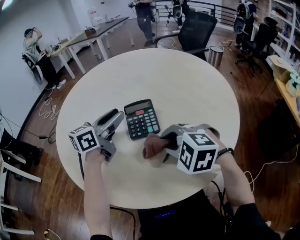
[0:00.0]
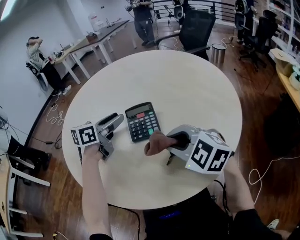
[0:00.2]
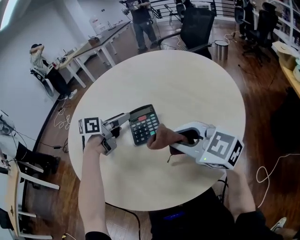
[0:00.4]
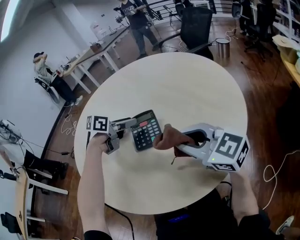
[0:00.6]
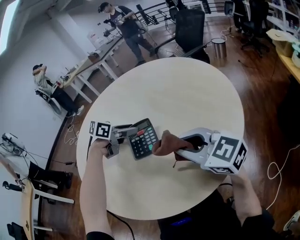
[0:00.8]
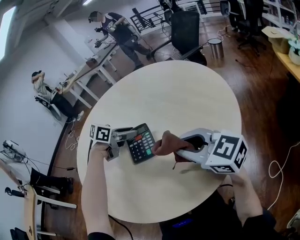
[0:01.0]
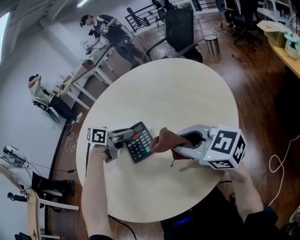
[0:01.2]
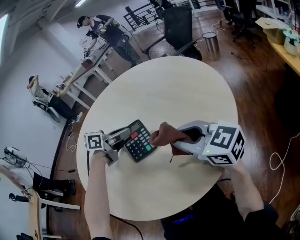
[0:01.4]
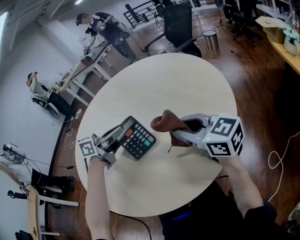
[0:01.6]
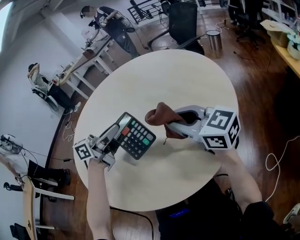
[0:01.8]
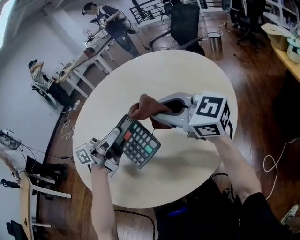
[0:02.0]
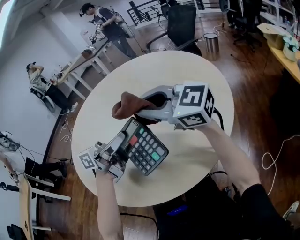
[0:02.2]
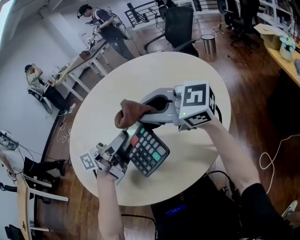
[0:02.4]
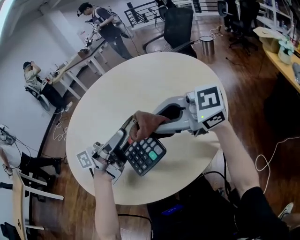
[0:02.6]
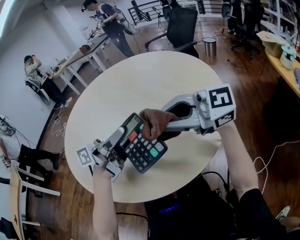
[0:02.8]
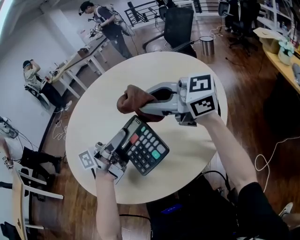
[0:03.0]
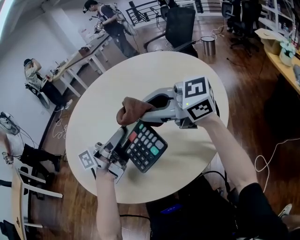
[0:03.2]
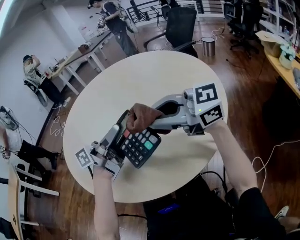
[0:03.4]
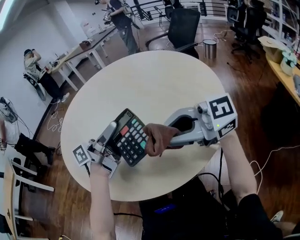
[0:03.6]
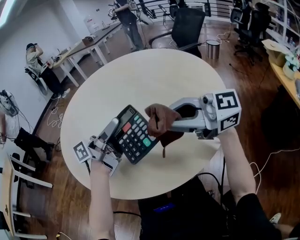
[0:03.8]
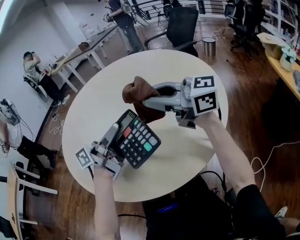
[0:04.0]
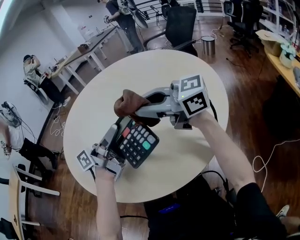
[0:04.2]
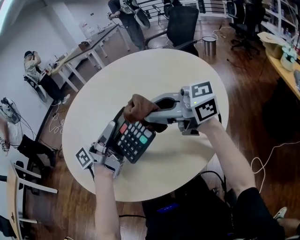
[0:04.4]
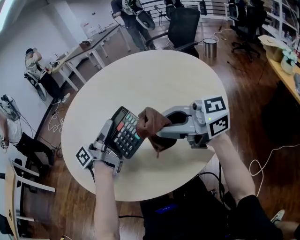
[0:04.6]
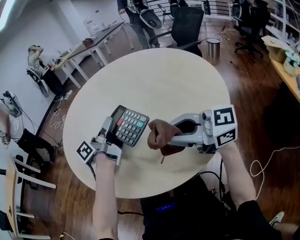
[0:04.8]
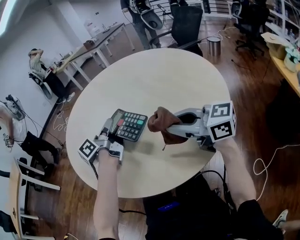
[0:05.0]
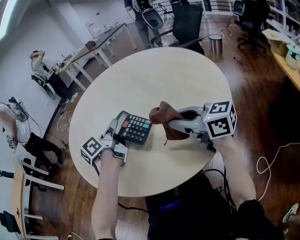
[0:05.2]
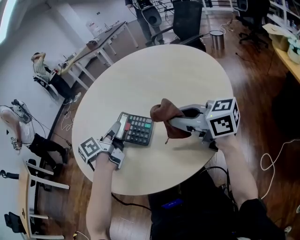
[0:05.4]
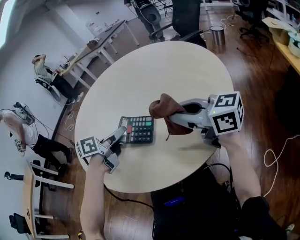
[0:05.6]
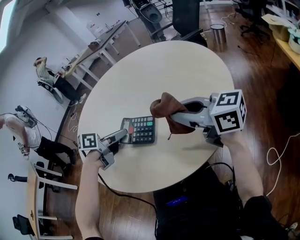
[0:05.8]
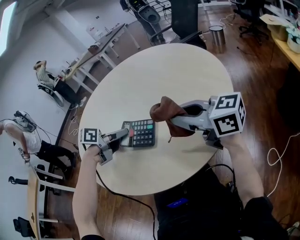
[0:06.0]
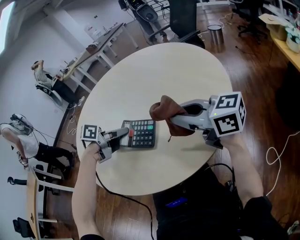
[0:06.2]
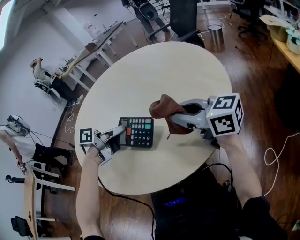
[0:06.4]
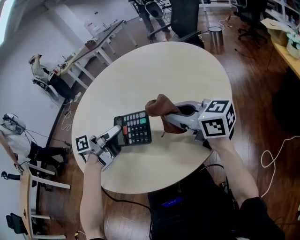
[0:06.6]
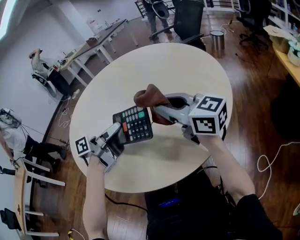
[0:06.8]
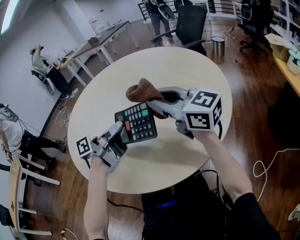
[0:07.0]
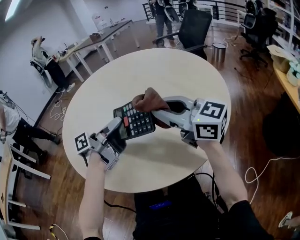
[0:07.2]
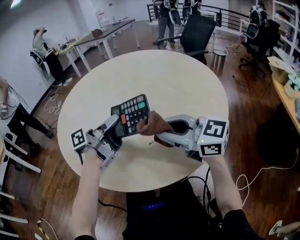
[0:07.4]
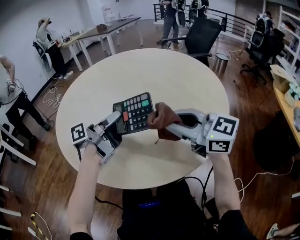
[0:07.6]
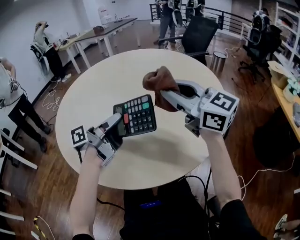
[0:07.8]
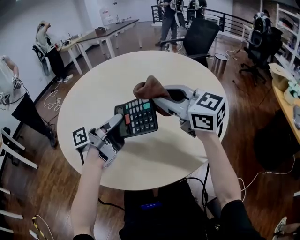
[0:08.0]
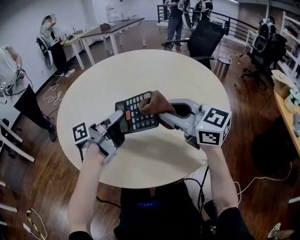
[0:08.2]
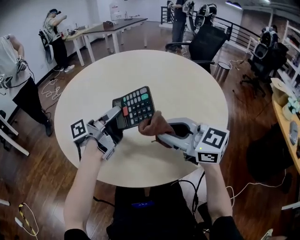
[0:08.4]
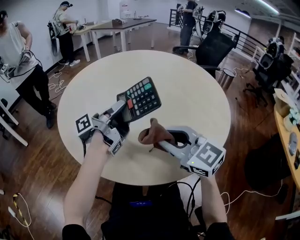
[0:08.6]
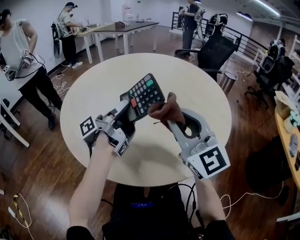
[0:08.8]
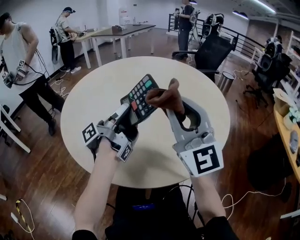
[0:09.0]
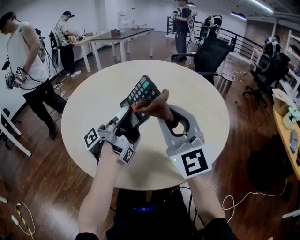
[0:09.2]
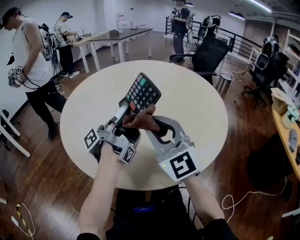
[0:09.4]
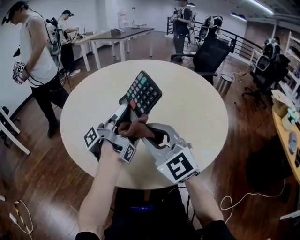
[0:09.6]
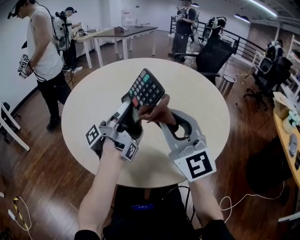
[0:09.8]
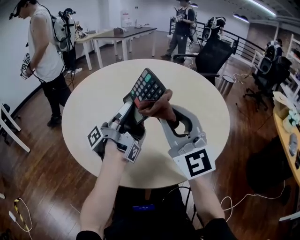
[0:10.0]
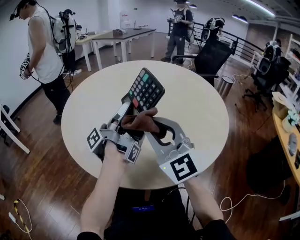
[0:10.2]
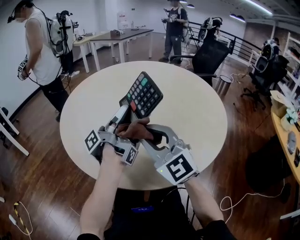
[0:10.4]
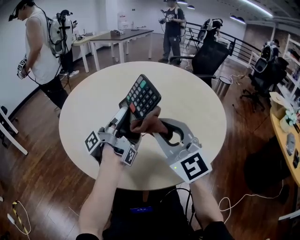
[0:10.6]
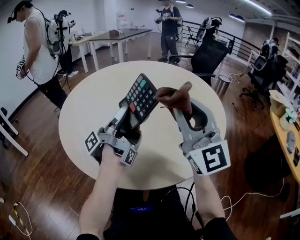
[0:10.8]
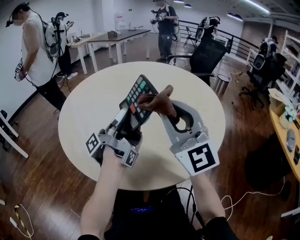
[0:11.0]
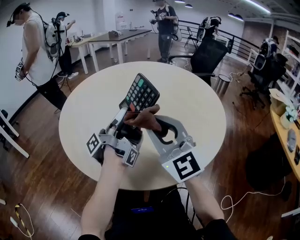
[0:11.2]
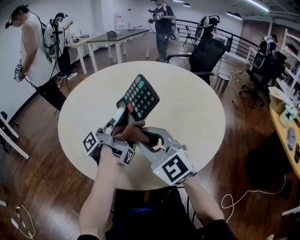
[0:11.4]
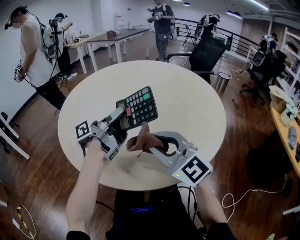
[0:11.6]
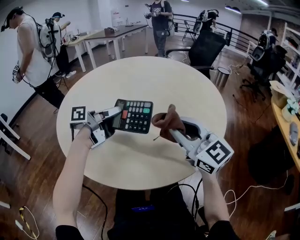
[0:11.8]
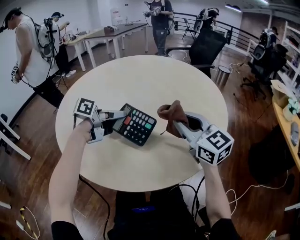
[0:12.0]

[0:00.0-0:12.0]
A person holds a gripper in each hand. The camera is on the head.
0:00.0 to 0:01.6: The right gripper travels to the right and upward by approximately 15 cm, and tips its fingers upward by about 40 degrees; the left gripper moves to the right, some 5 cm, rotates some 20 degrees, and closes up.
0:01.6 to 0:03.0: The right gripper moves upward, roughly 10 cm, and turns by some 30 degrees. The left gripper changes place by roughly 15 cm, and angles its fingers upward, by approximately 30 degrees.
0:03.0 to 0:04.4: The left gripper ends up roughly 5 cm from where it was.
0:04.4 to 0:06.0: The right gripper ends up roughly 10 cm from where it was, and rotates approximately 20 degrees. The left gripper heads downward, covering some 10 cm, angles its fingers downward, by approximately 60 degrees, and opens up.
0:06.0 to 0:07.6: The left gripper shifts about 5 cm upward, tips its fingers upward by some 40 degrees, and closes. The right gripper travels upward and back again, about 5 cm each way.
0:07.6 to 0:09.0: The left gripper turns by some 30 degrees, while the right gripper swings up and down, roughly 15 cm each way, with 2 reversals, and swivels some 50 degrees.
0:09.0 to 0:10.4: The right gripper goes up and down, approximately 10 cm each way, reversing 2 times, and turns by approximately 20 degrees.
0:10.4 to 0:12.0: The left gripper goes approximately 10 cm downward, and angles its fingers downward, by approximately 50 degrees. Meanwhile the right gripper reaches approximately 10 cm upward, then returns, and rotates roughly 30 degrees.

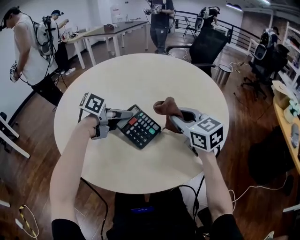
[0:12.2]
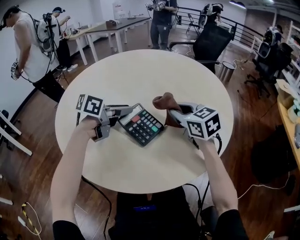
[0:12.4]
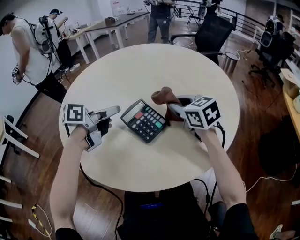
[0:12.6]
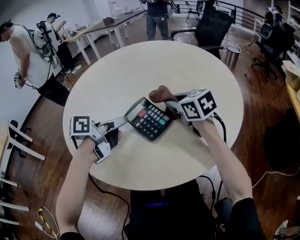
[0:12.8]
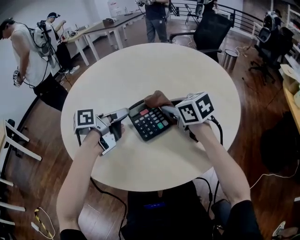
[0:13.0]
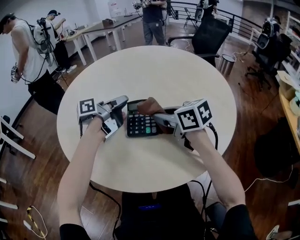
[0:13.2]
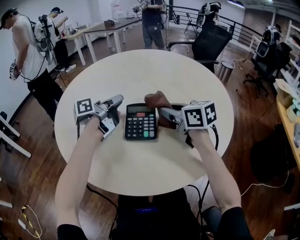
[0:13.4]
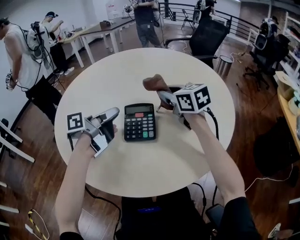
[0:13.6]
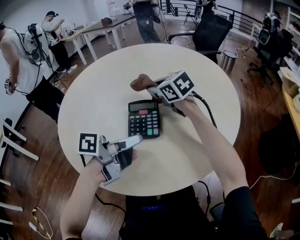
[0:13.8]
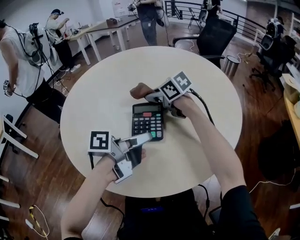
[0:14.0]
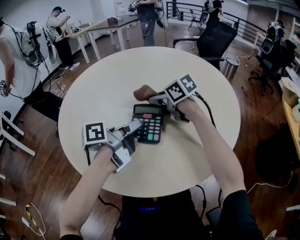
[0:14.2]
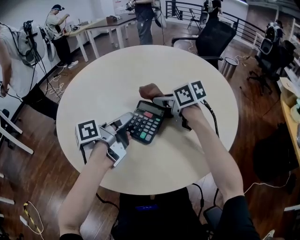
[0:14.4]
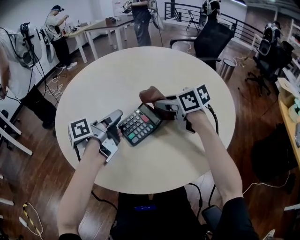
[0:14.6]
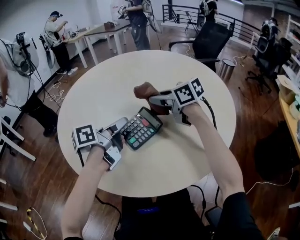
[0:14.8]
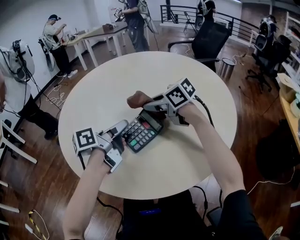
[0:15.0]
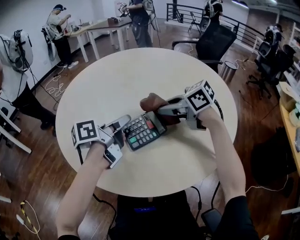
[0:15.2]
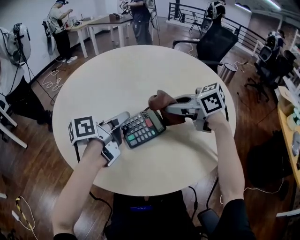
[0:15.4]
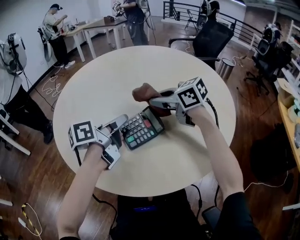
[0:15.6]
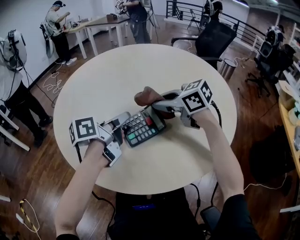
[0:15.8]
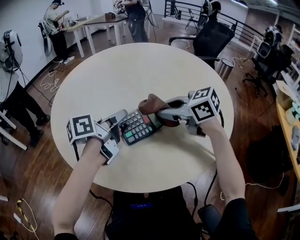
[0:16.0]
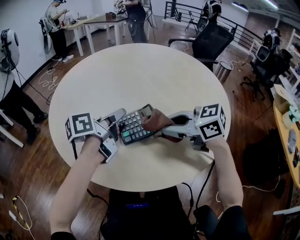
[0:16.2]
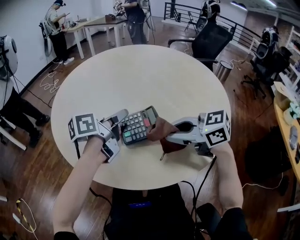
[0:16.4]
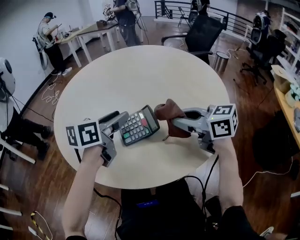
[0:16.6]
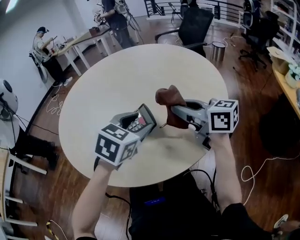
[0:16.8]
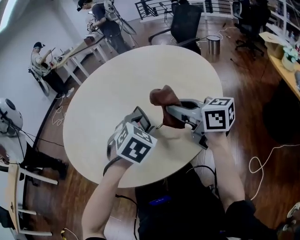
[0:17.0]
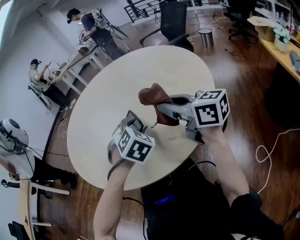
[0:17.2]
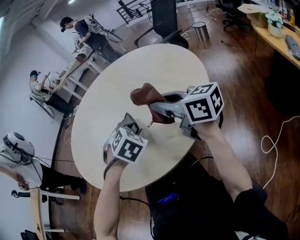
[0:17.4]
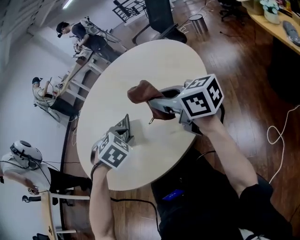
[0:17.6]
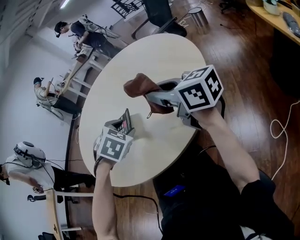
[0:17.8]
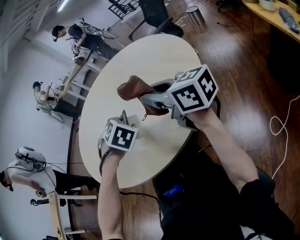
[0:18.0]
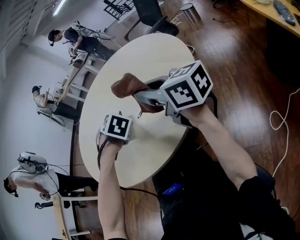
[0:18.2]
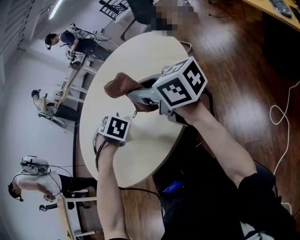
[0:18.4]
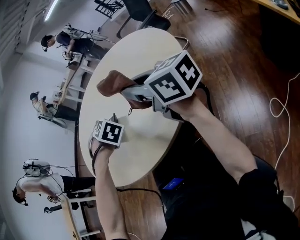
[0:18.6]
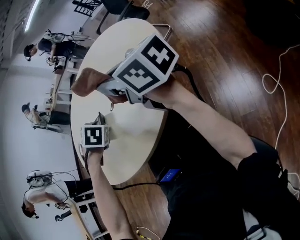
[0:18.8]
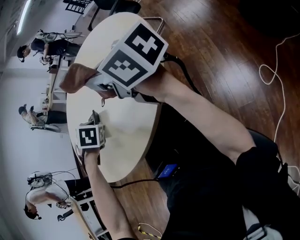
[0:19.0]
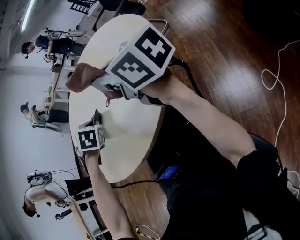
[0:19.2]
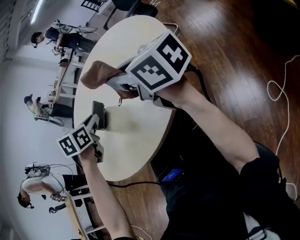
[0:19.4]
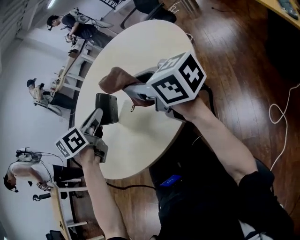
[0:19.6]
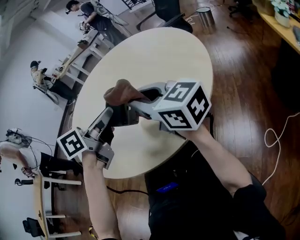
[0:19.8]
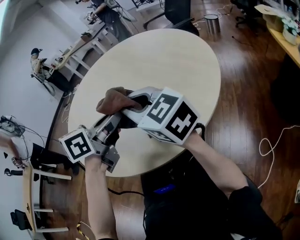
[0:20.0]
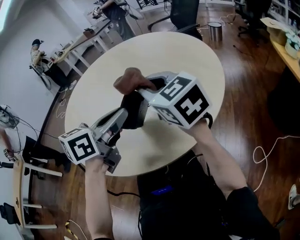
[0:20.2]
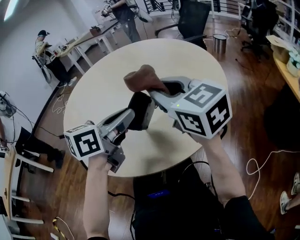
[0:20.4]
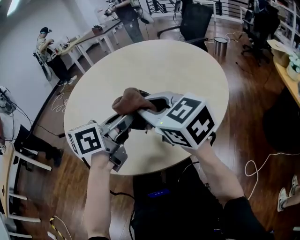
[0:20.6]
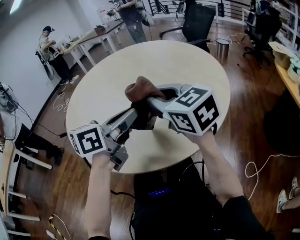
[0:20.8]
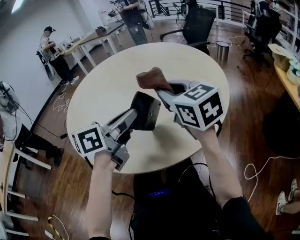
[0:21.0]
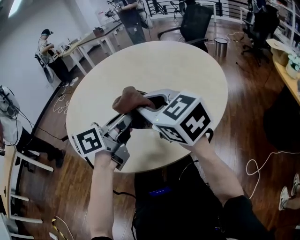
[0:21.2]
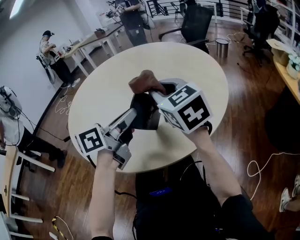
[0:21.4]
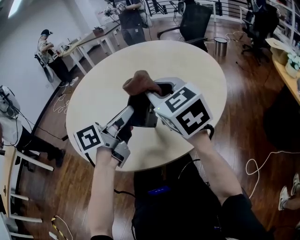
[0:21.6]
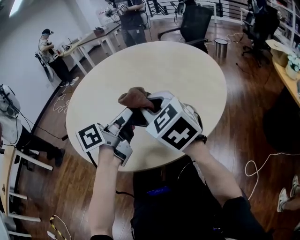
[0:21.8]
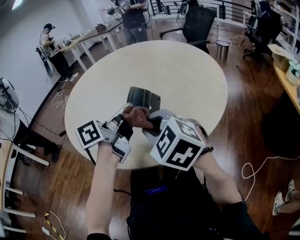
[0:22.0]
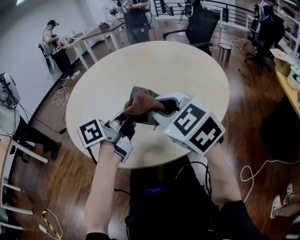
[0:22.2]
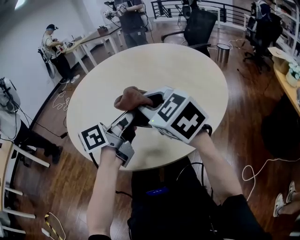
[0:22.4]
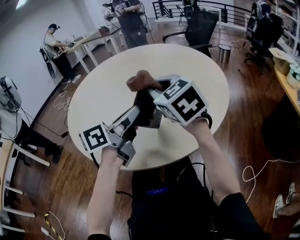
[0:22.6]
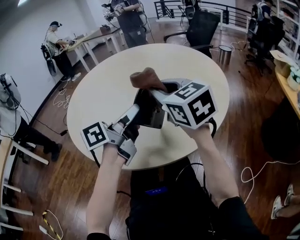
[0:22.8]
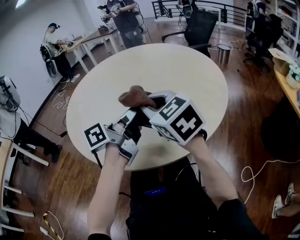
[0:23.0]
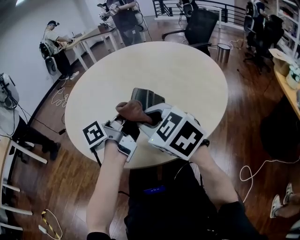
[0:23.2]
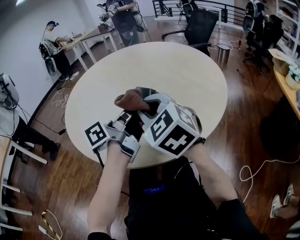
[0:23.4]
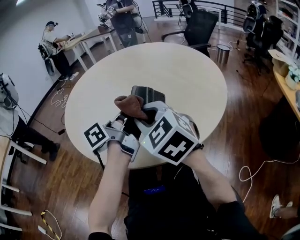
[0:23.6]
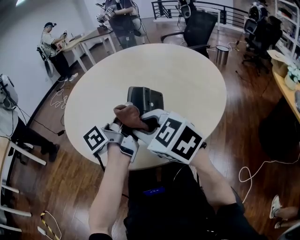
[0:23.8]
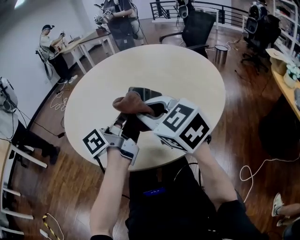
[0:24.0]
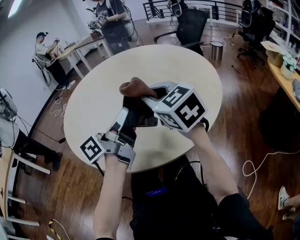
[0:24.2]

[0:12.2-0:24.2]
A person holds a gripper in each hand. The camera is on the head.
0:12.2 to 0:13.8: The right gripper goes forward and backward, approximately 15 cm each way, reversing 2 times, while the left gripper goes forward and backward, approximately 15 cm each way, reversing 2 times, and rotates some 30 degrees.
0:13.8 to 0:15.2: The right gripper changes place by approximately 10 cm, and turns by about 30 degrees, while the left gripper moves approximately 10 cm, and swivels some 30 degrees.
0:15.2 to 0:16.6: The right gripper travels backward by about 10 cm, and turns by approximately 20 degrees; the left gripper turns by roughly 30 degrees.
0:16.6 to 0:18.2: The right gripper ends up about 15 cm from where it was, and turns by roughly 30 degrees; the left gripper changes place by roughly 15 cm, and tilts its fingers some 40 degrees downward.
0:18.2 to 0:19.8: The left gripper shifts some 10 cm upward, points its fingers about 40 degrees further upward, and closes its fingers. Meanwhile the right gripper moves about 10 cm.
0:19.8 to 0:21.2: The left gripper is displaced to the left by about 5 cm, while the right gripper goes left and right, roughly 10 cm each way, reversing 2 times, and rotates some 20 degrees.
0:21.2 to 0:22.6: The right gripper goes forward and backward, roughly 10 cm each way, reversing 2 times.
0:22.6 to 0:24.2: The right gripper reaches approximately 10 cm backward, then returns, while the left gripper changes its angle by approximately 20 degrees.
